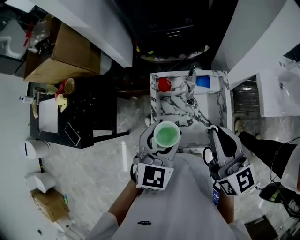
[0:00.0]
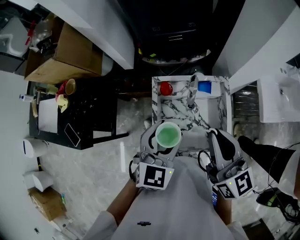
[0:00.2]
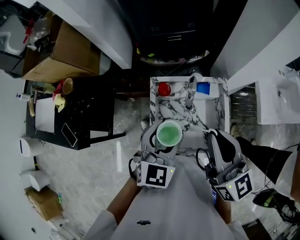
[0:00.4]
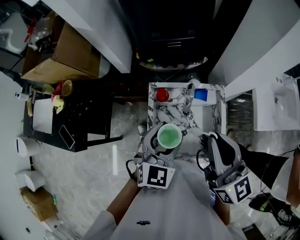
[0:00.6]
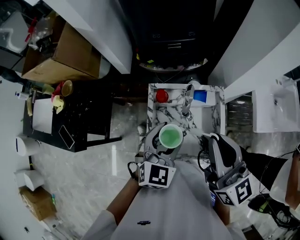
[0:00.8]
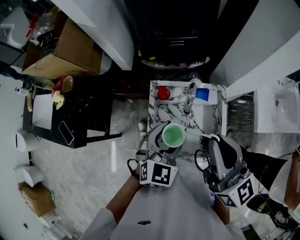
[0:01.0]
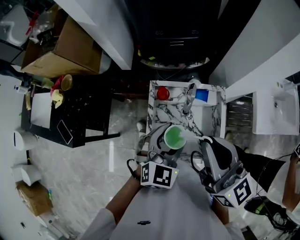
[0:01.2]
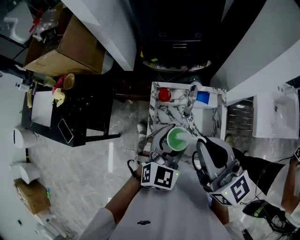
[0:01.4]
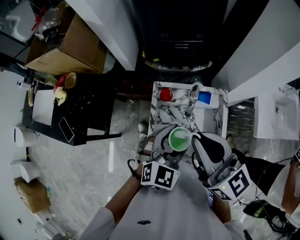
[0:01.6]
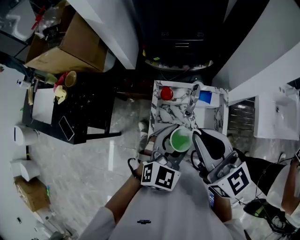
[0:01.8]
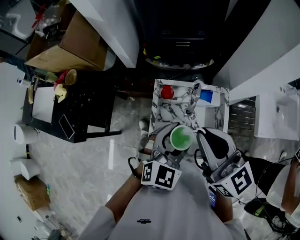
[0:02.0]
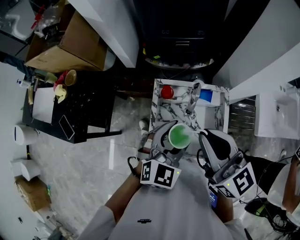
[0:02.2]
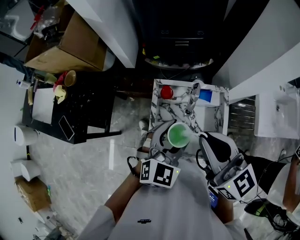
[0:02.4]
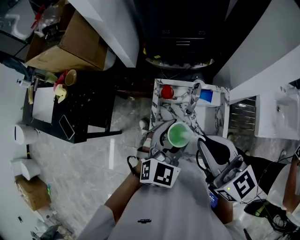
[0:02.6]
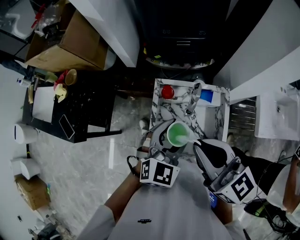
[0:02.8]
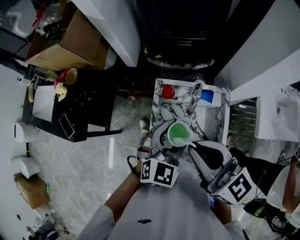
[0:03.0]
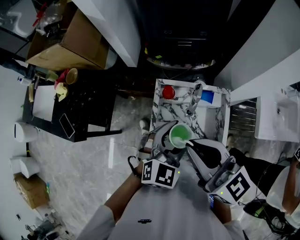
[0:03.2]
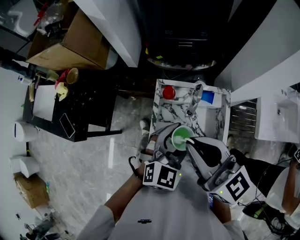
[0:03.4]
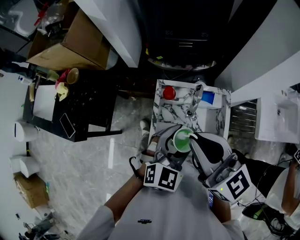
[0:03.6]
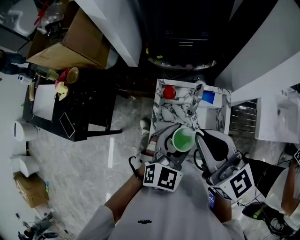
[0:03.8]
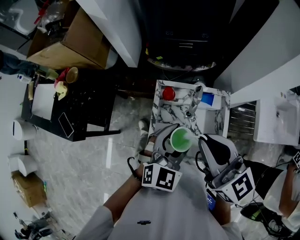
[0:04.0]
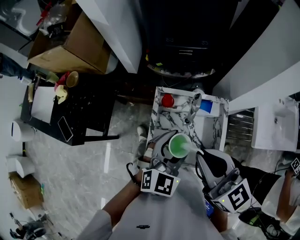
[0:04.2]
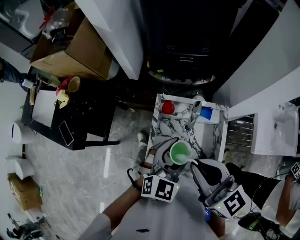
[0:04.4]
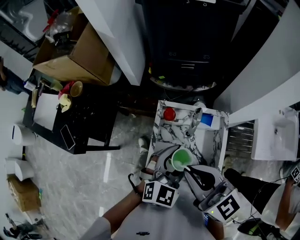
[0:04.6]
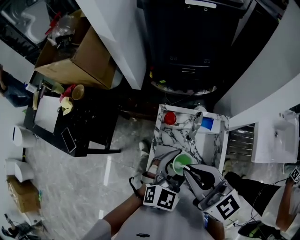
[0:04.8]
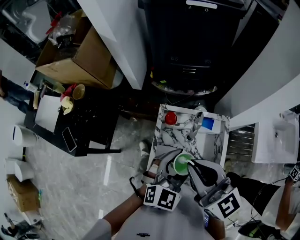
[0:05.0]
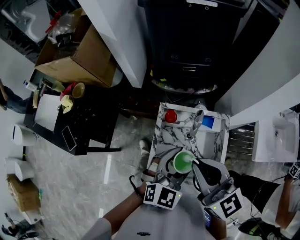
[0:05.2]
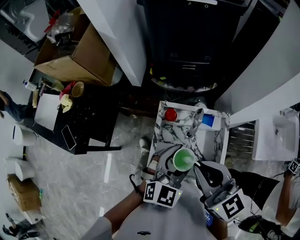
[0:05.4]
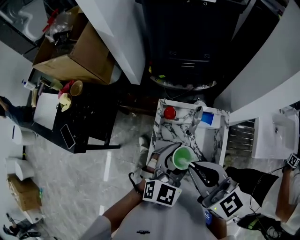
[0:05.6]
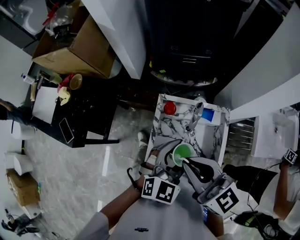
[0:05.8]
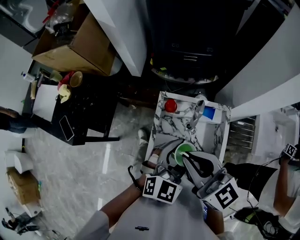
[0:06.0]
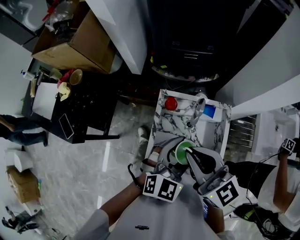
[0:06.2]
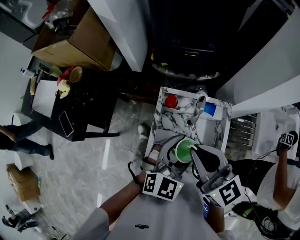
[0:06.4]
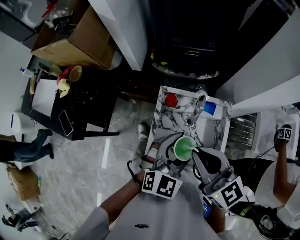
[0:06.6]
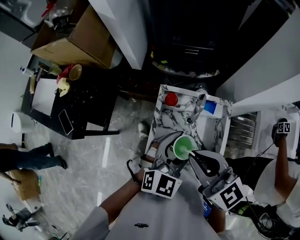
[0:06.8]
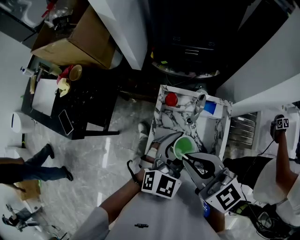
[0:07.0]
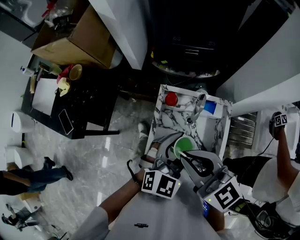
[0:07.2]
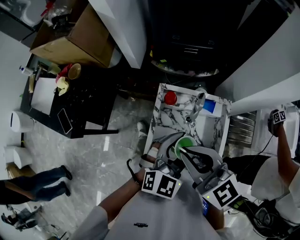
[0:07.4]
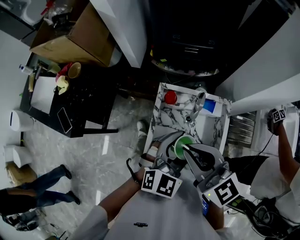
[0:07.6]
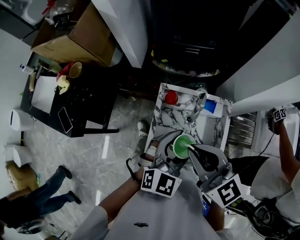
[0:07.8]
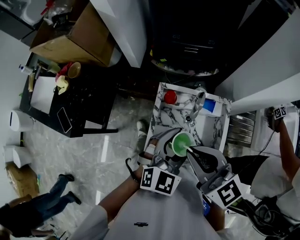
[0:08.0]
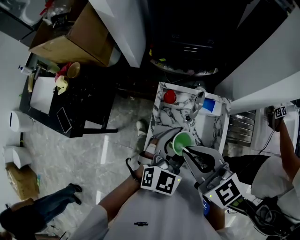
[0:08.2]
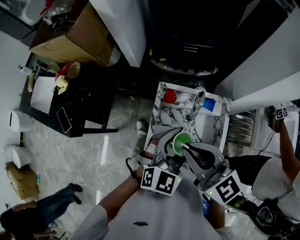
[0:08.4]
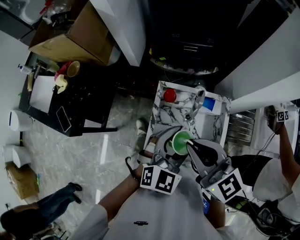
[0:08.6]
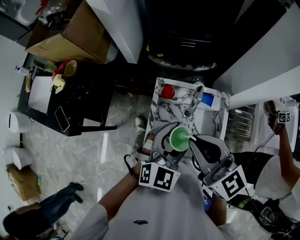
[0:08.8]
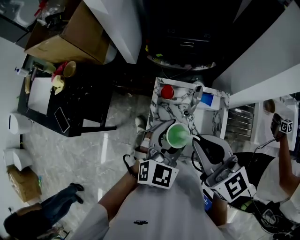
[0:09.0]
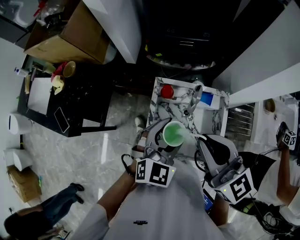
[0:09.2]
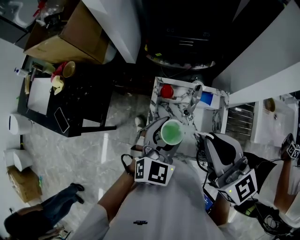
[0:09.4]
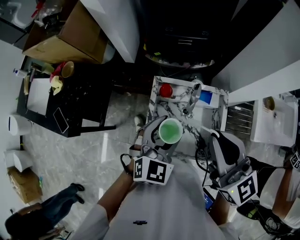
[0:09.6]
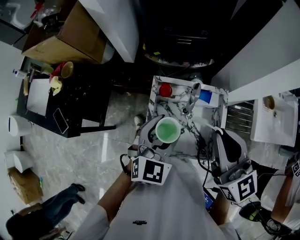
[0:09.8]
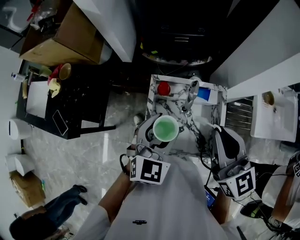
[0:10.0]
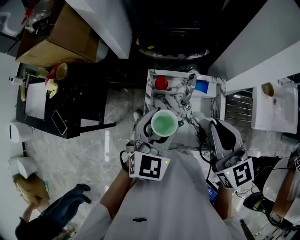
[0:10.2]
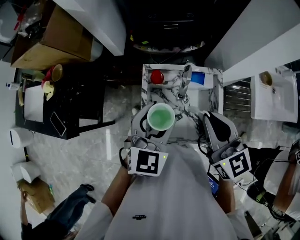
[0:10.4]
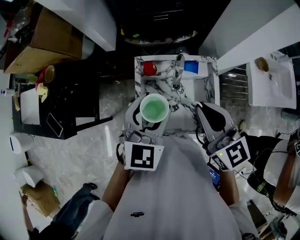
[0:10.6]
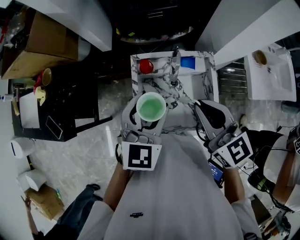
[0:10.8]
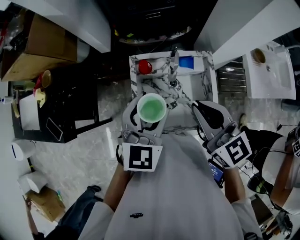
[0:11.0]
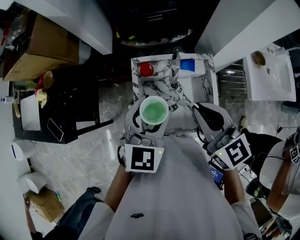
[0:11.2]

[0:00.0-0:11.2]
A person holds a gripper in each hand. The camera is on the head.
0:00.0 to 0:01.6: The right gripper shifts approximately 10 cm to the left and upward.
0:01.6 to 0:06.4: There are only small adjustments of the grippers.
0:06.4 to 0:08.0: The grippers move only a little.
0:08.0 to 0:09.6: The right gripper shifts about 10 cm to the right and upward.
0:09.6 to 0:11.2: The right gripper travels downward by about 10 cm.

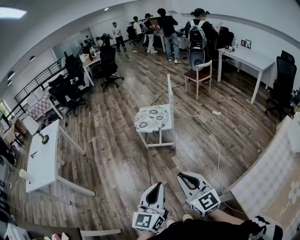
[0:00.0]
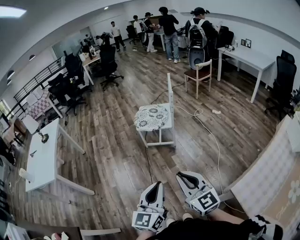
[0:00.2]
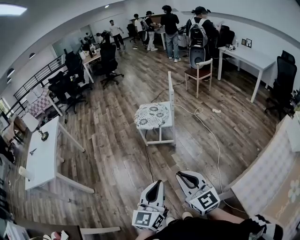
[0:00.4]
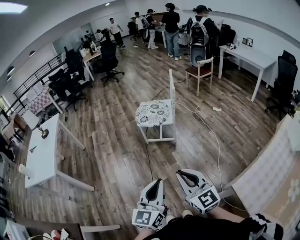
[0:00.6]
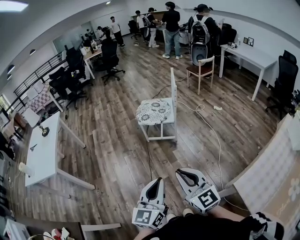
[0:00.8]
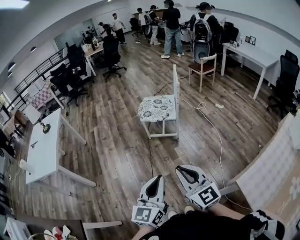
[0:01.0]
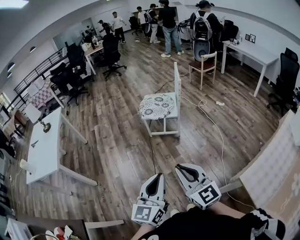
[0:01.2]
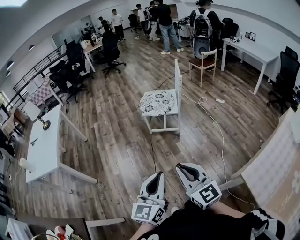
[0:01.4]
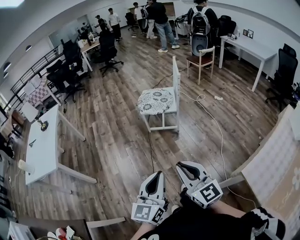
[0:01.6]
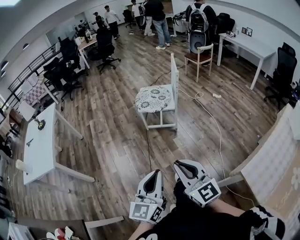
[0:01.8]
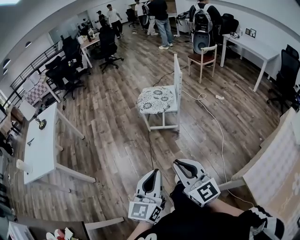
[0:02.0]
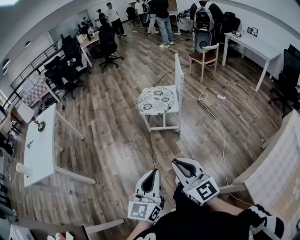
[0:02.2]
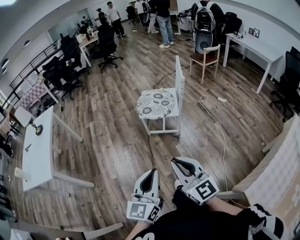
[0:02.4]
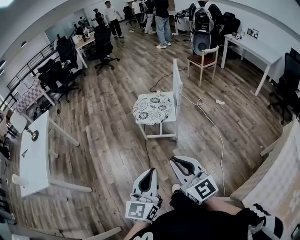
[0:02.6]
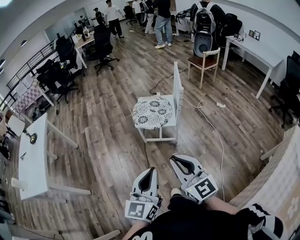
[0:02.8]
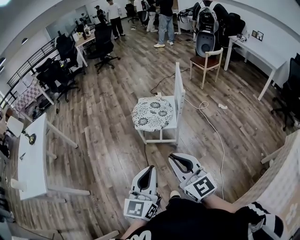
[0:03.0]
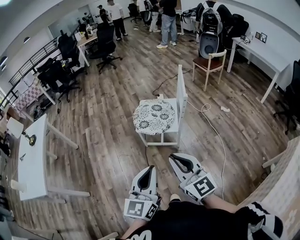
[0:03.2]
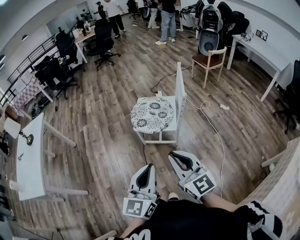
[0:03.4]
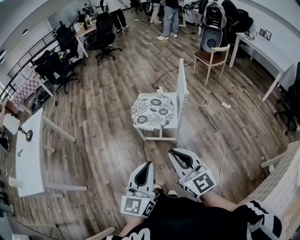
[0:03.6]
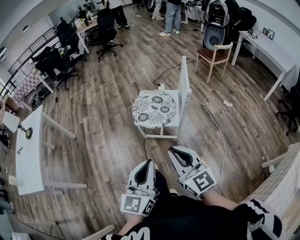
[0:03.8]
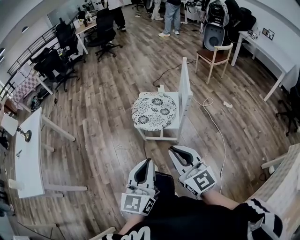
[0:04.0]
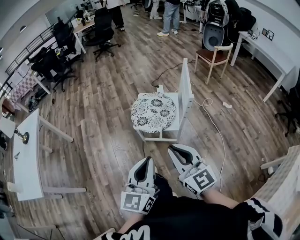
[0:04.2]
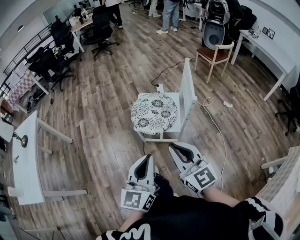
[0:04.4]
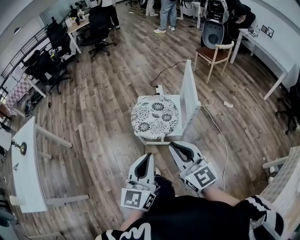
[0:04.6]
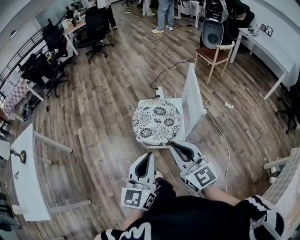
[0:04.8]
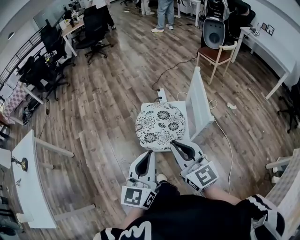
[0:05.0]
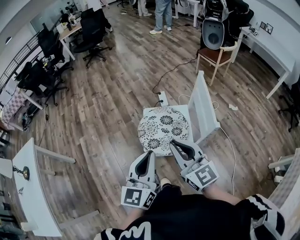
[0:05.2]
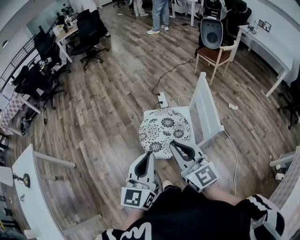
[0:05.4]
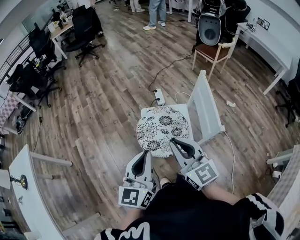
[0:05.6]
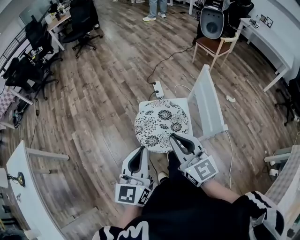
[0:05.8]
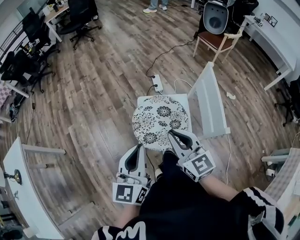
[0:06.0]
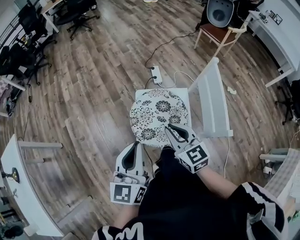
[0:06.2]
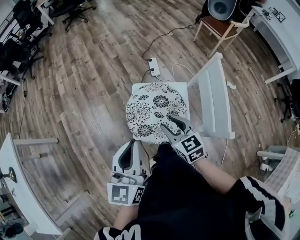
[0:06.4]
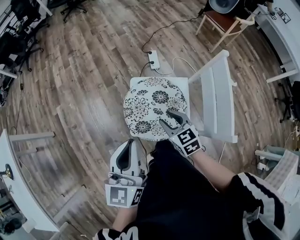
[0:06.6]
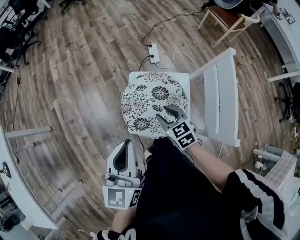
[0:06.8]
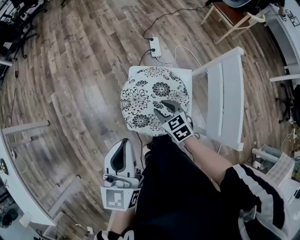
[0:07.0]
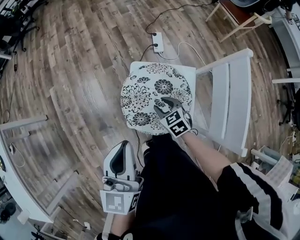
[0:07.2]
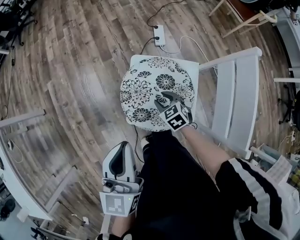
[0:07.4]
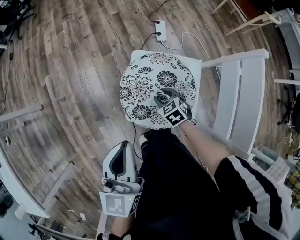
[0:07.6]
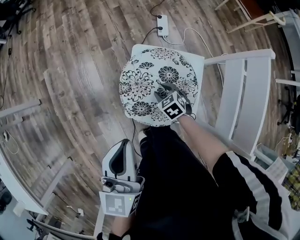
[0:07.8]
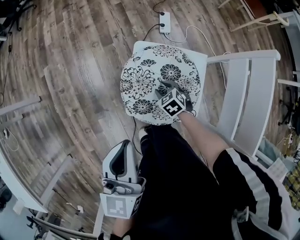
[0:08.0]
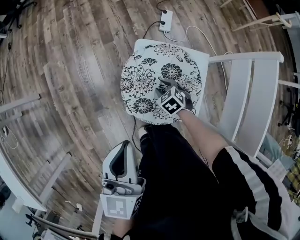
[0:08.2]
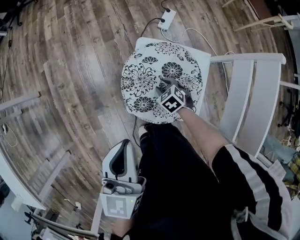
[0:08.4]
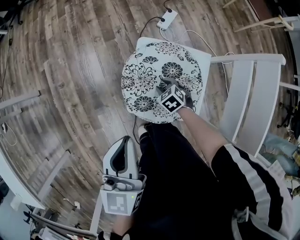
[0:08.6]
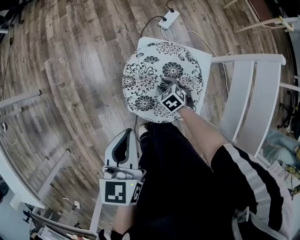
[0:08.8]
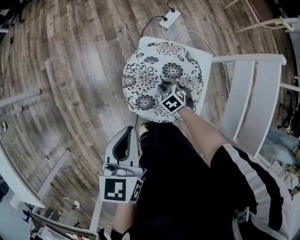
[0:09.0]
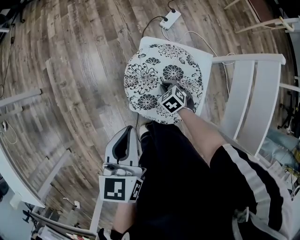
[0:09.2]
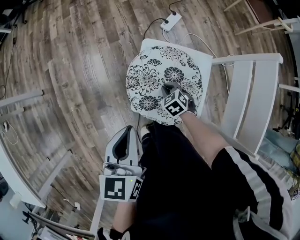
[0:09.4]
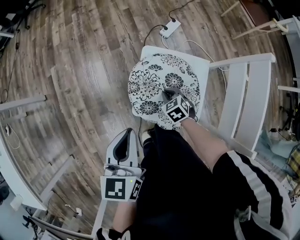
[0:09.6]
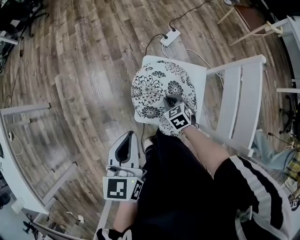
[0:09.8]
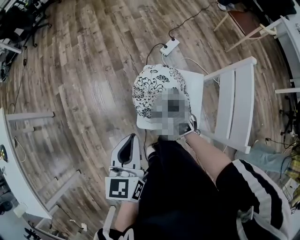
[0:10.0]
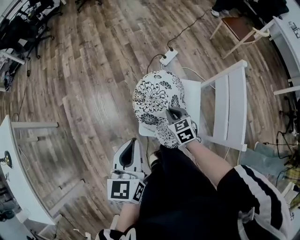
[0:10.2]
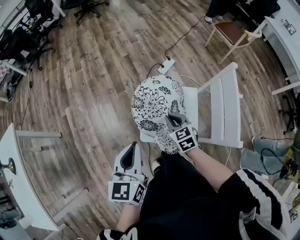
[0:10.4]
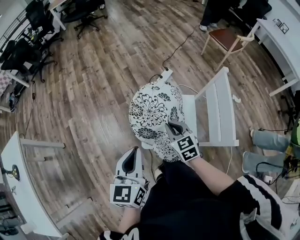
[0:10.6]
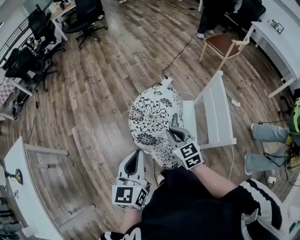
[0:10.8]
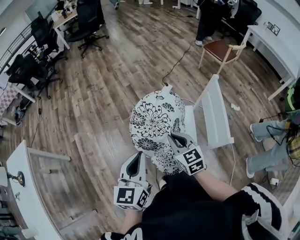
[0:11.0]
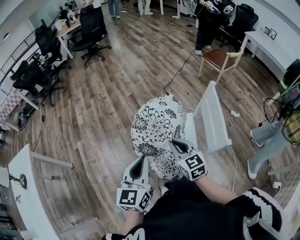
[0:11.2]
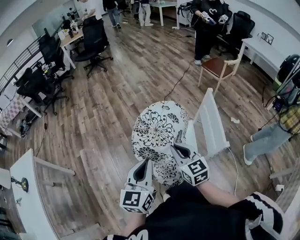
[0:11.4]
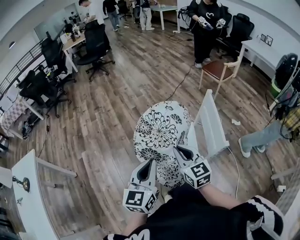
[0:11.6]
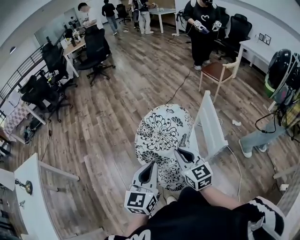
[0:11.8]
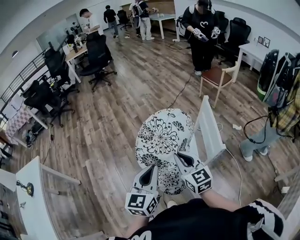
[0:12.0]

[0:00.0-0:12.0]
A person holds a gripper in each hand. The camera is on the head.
0:00.0 to 0:01.6: The grippers both shift to the left by some 10 cm.
0:01.6 to 0:03.0: The grippers both shift forward by approximately 30 cm.
0:03.0 to 0:04.4: The grippers both shift forward by roughly 15 cm.
0:04.4 to 0:06.0: Both grippers travel together forward, about 30 cm.
0:06.0 to 0:07.6: The left gripper goes approximately 10 cm downward and forward. The right gripper heads downward, covering some 40 cm, angles its fingers downward, by about 50 degrees, and opens.
0:07.6 to 0:09.0: The grippers both shift downward by roughly 5 cm.
0:09.0 to 0:10.4: The right gripper goes some 25 cm upward, and turns by roughly 30 degrees. Meanwhile the left gripper travels upward by approximately 10 cm.
0:10.4 to 0:12.0: The left gripper shifts some 15 cm upward, backward and to the right, and turns by about 20 degrees. Meanwhile the right gripper is displaced upward and backward by some 25 cm, and changes its angle by some 30 degrees.

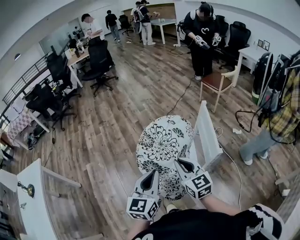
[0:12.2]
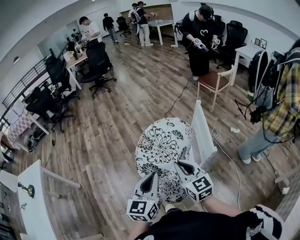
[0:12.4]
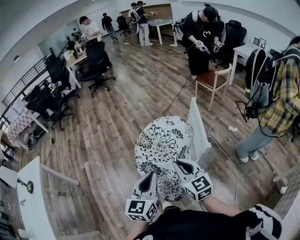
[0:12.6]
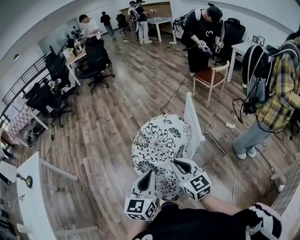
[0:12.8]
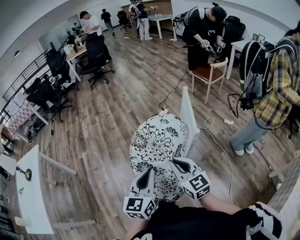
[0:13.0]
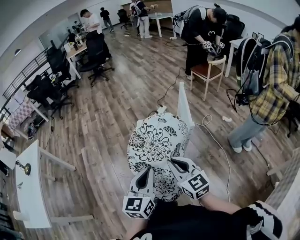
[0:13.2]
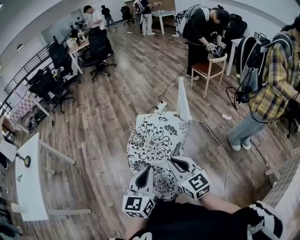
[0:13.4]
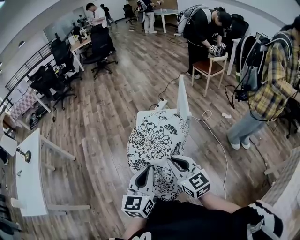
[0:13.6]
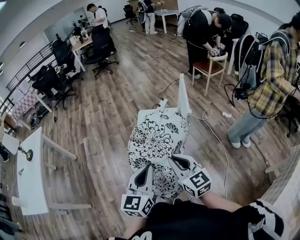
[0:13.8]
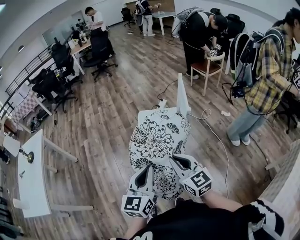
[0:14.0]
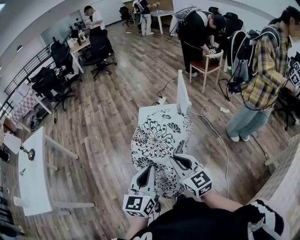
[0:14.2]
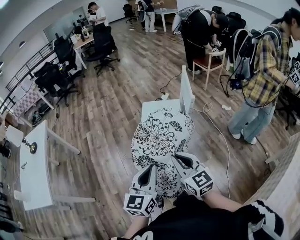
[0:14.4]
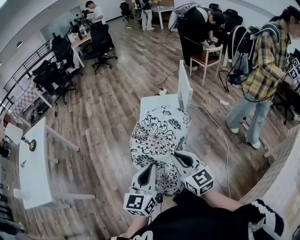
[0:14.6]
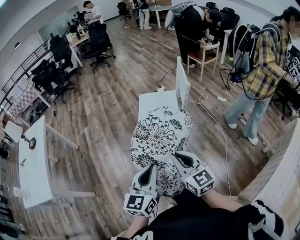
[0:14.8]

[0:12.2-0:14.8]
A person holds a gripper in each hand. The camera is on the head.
0:12.2 to 0:13.4: Both grippers move backward, roughly 20 cm.
0:13.4 to 0:14.8: Both grippers travel together backward, approximately 20 cm.
